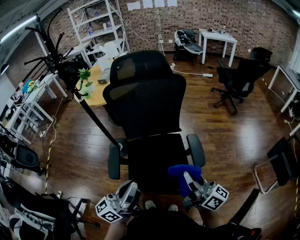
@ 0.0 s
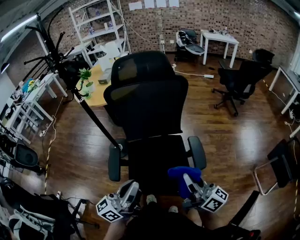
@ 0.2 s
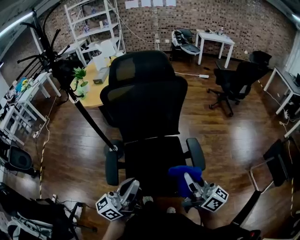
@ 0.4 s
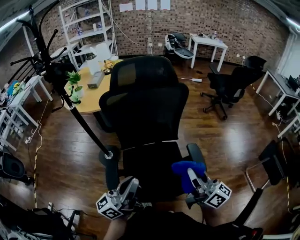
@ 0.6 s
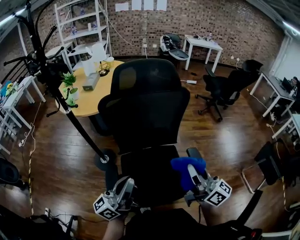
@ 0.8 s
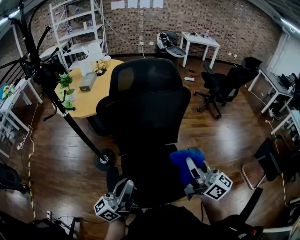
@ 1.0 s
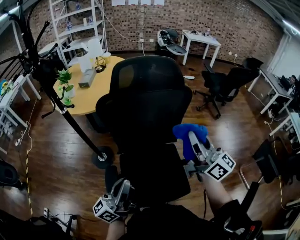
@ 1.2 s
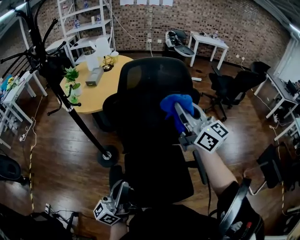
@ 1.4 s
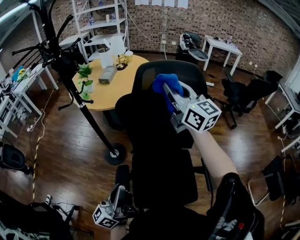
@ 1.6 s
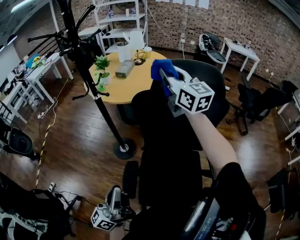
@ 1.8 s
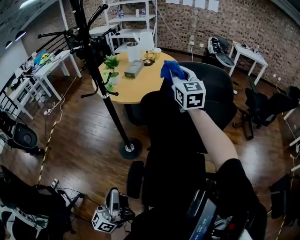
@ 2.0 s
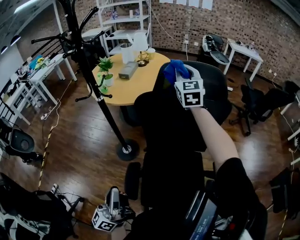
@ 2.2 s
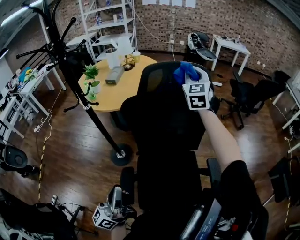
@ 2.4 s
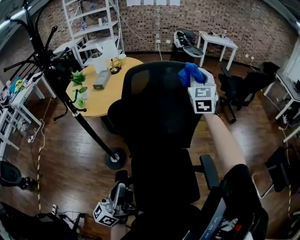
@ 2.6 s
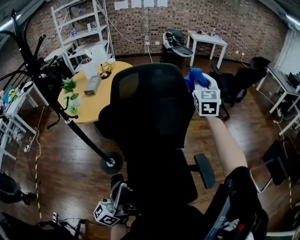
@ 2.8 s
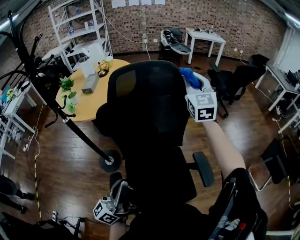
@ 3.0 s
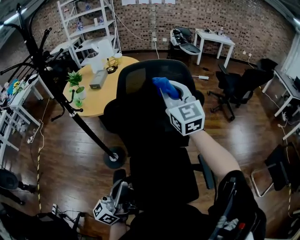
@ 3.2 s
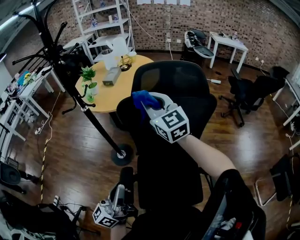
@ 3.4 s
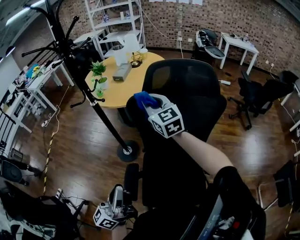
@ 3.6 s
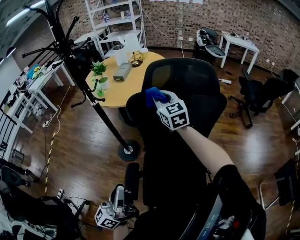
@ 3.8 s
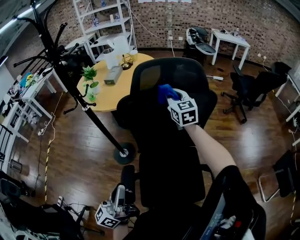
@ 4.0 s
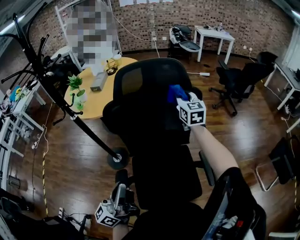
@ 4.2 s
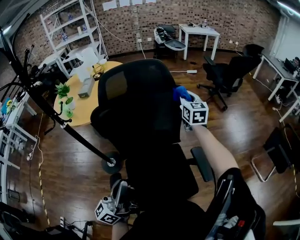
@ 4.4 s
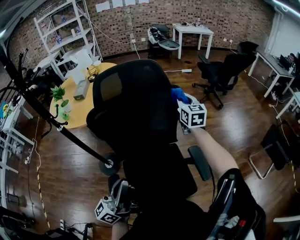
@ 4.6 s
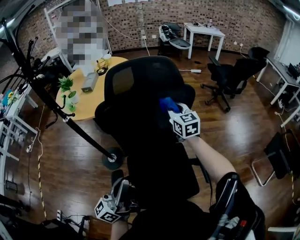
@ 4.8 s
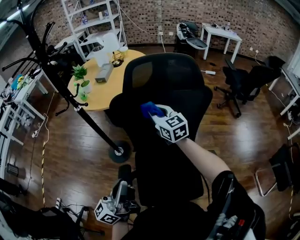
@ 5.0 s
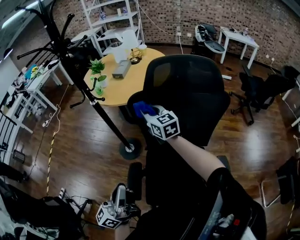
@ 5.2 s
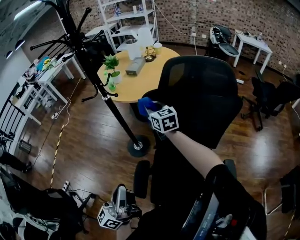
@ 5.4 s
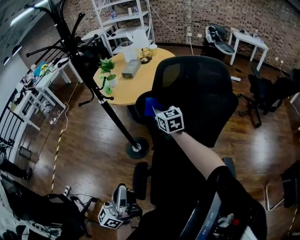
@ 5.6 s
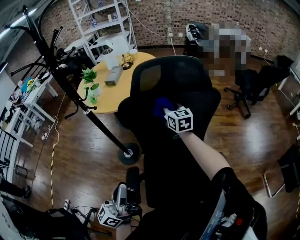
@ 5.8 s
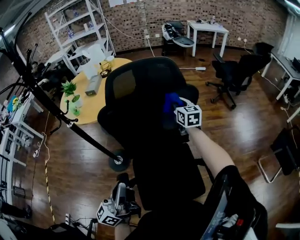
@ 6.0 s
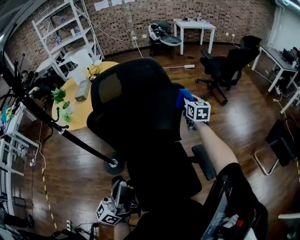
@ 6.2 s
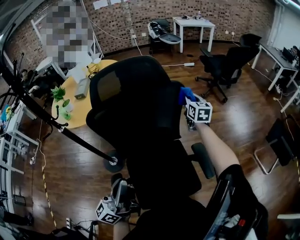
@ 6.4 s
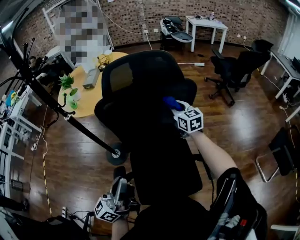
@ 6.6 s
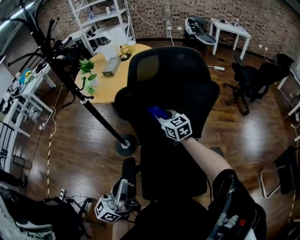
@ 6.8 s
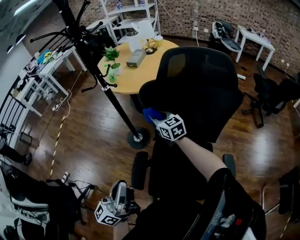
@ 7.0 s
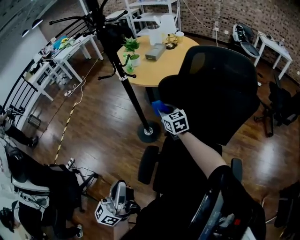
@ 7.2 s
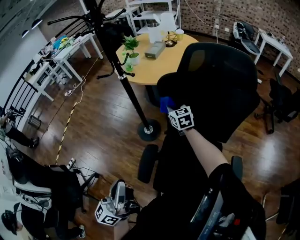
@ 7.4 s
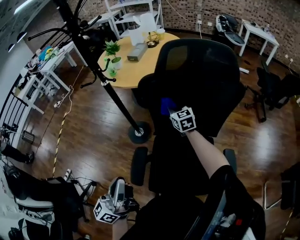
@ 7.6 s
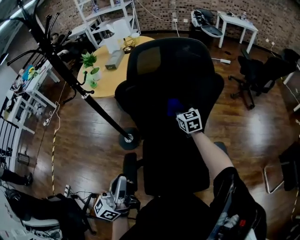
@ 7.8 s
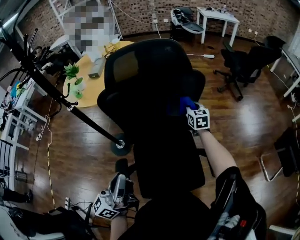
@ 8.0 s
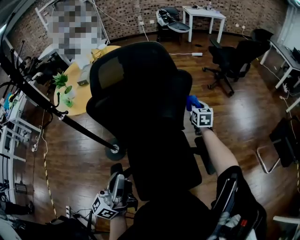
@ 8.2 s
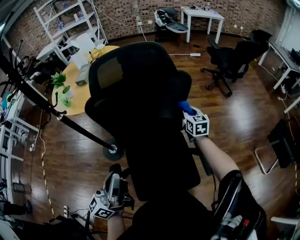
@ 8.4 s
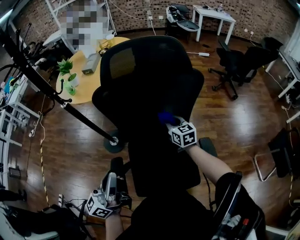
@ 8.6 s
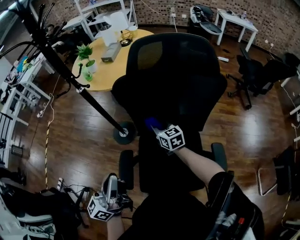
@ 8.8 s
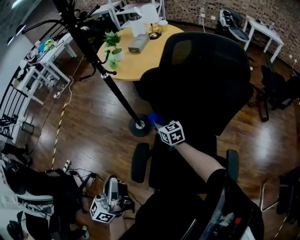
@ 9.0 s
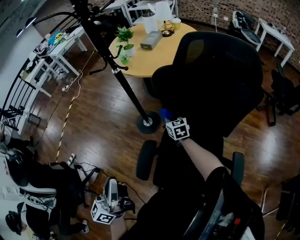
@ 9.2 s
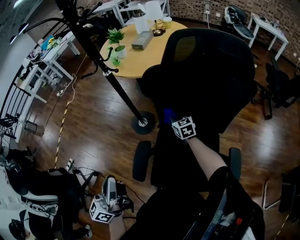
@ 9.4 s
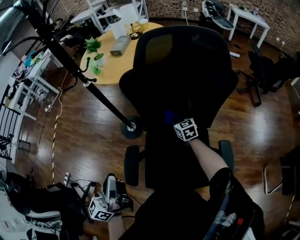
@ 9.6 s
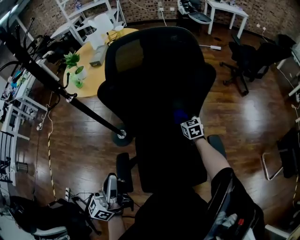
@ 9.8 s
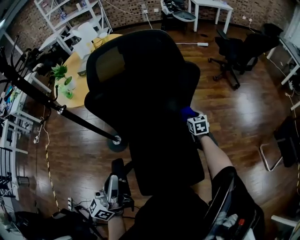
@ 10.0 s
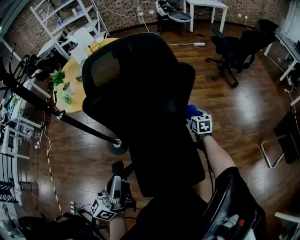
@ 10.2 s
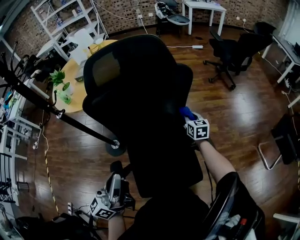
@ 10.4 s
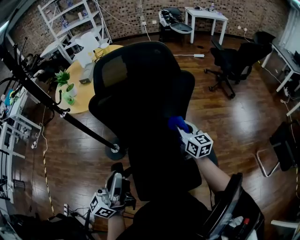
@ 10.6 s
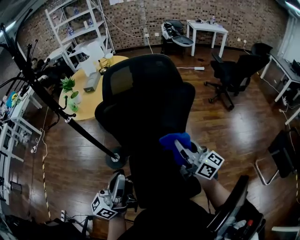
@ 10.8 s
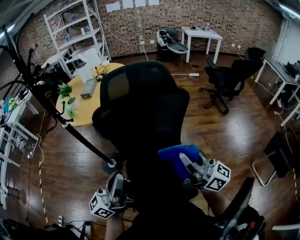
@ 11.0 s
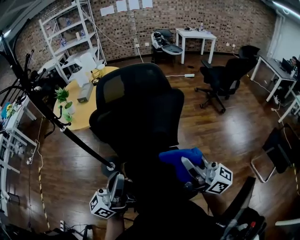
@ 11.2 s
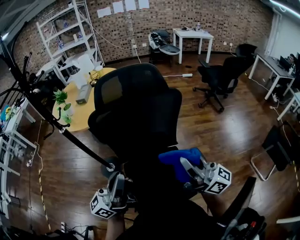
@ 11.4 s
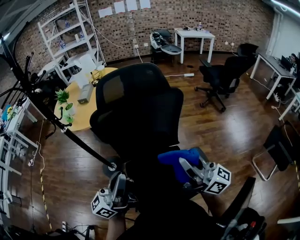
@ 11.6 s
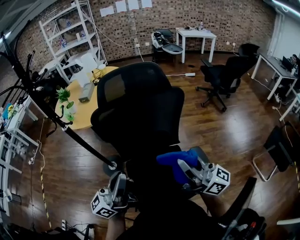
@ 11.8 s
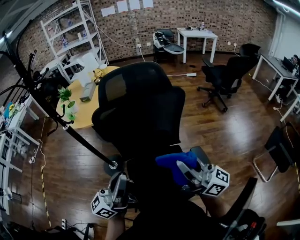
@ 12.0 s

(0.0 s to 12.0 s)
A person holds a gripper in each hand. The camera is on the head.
0.0 s - 1.6 s: The left gripper goes approximately 20 cm to the left and forward; the right gripper is displaced forward, to the left and upward by approximately 50 cm, and swivels some 40 degrees.
1.6 s - 3.0 s: The left gripper changes place by roughly 10 cm, while the right gripper ends up roughly 20 cm from where it was, and swivels roughly 50 degrees.
3.0 s - 4.4 s: The right gripper goes roughly 15 cm downward, and turns by roughly 20 degrees.
6.0 s - 7.6 s: The right gripper changes place by approximately 25 cm, and changes its angle by about 30 degrees. The left gripper changes place by approximately 10 cm, and swivels roughly 20 degrees.
9.0 s - 10.4 s: The left gripper moves roughly 15 cm, and rotates some 30 degrees, while the right gripper travels downward and back again, some 10 cm each way, and turns by about 40 degrees.
10.4 s - 12.0 s: The left gripper shifts about 5 cm upward; the right gripper goes some 40 cm upward and backward, and points its fingers approximately 60 degrees further upward.

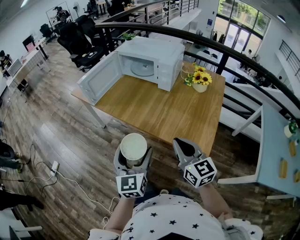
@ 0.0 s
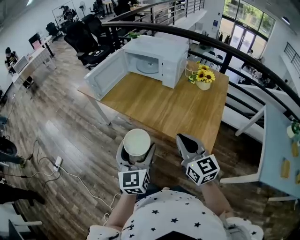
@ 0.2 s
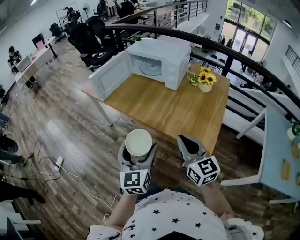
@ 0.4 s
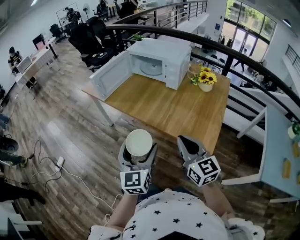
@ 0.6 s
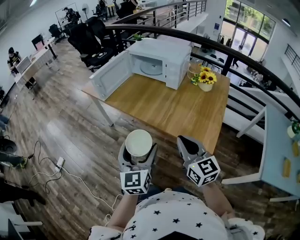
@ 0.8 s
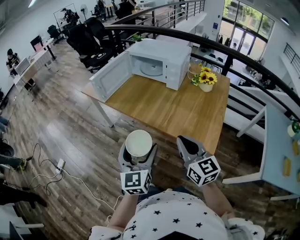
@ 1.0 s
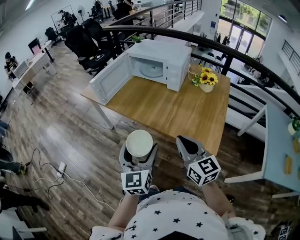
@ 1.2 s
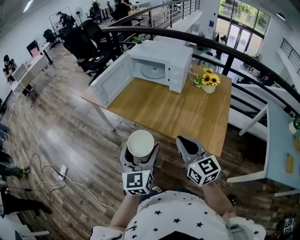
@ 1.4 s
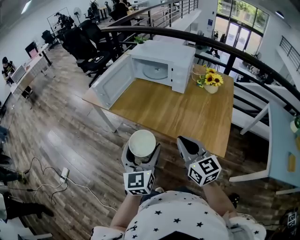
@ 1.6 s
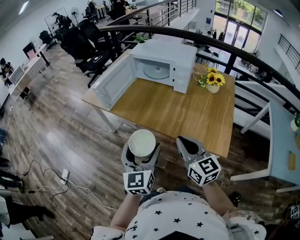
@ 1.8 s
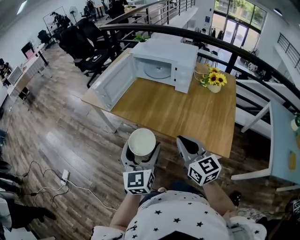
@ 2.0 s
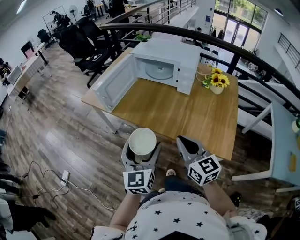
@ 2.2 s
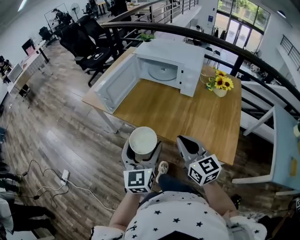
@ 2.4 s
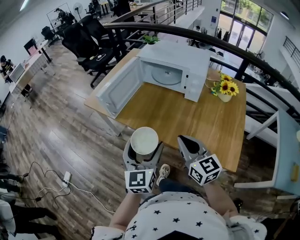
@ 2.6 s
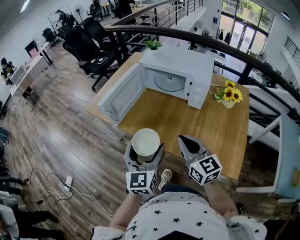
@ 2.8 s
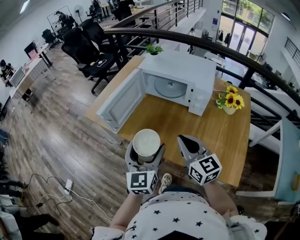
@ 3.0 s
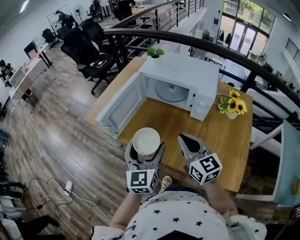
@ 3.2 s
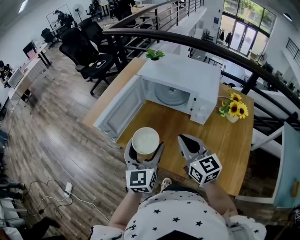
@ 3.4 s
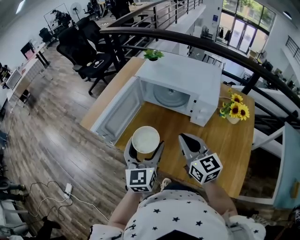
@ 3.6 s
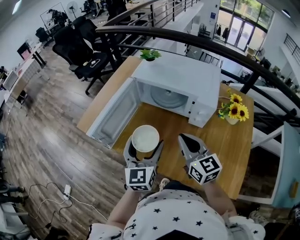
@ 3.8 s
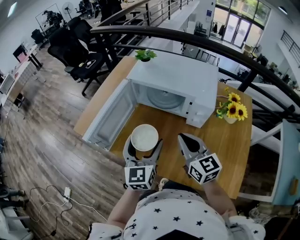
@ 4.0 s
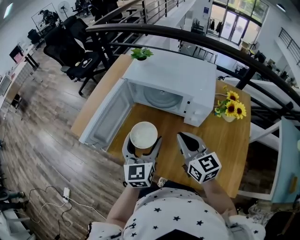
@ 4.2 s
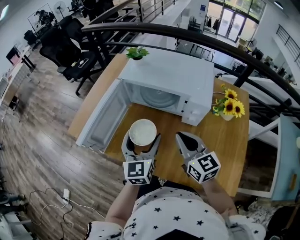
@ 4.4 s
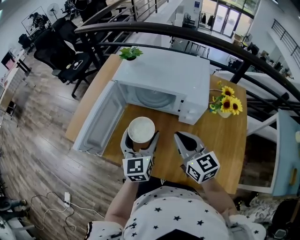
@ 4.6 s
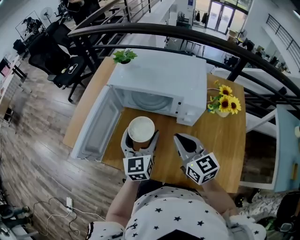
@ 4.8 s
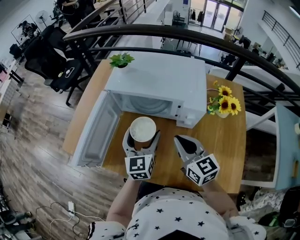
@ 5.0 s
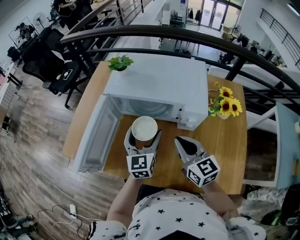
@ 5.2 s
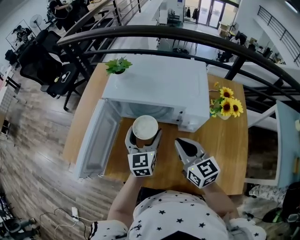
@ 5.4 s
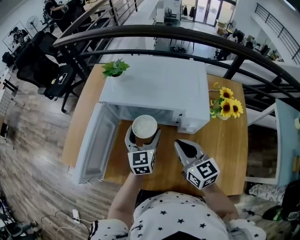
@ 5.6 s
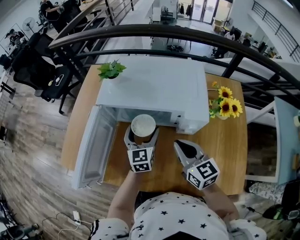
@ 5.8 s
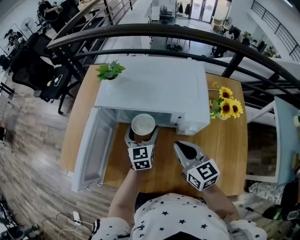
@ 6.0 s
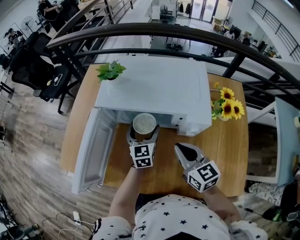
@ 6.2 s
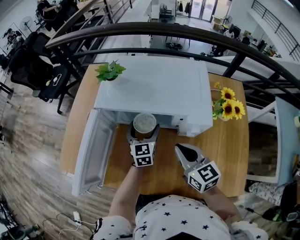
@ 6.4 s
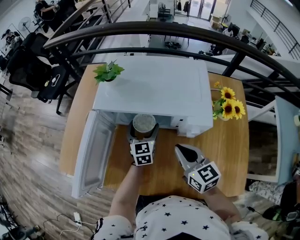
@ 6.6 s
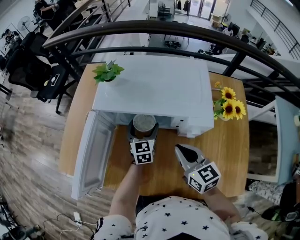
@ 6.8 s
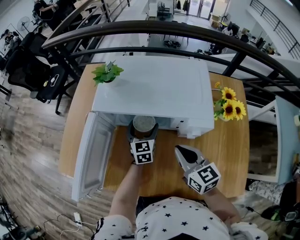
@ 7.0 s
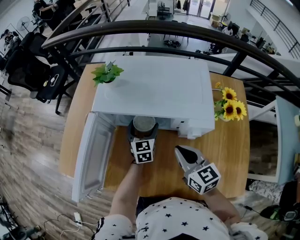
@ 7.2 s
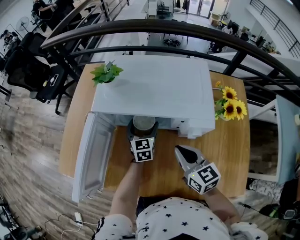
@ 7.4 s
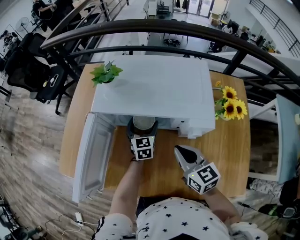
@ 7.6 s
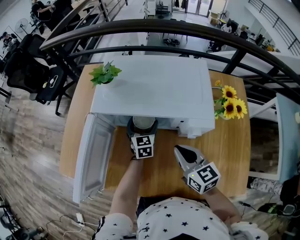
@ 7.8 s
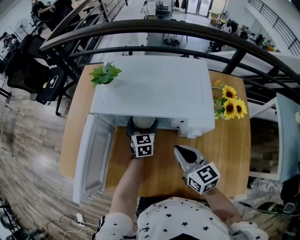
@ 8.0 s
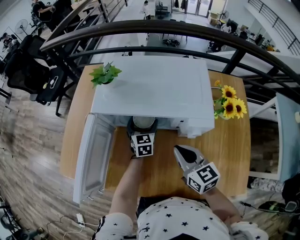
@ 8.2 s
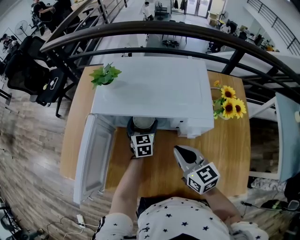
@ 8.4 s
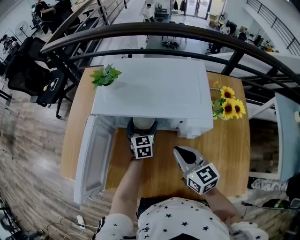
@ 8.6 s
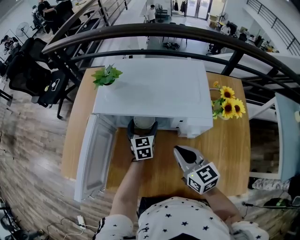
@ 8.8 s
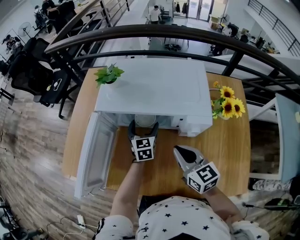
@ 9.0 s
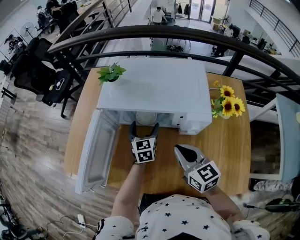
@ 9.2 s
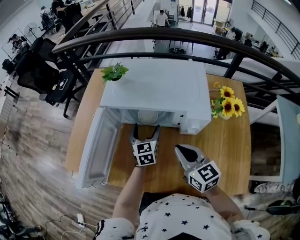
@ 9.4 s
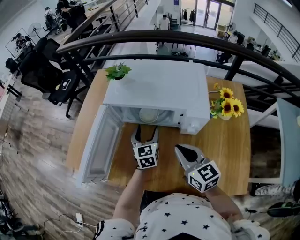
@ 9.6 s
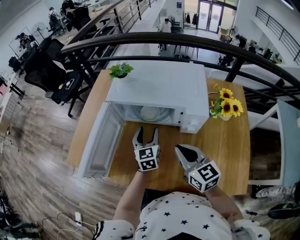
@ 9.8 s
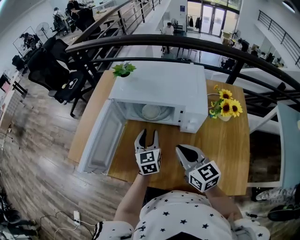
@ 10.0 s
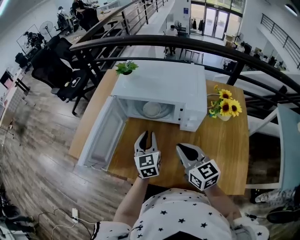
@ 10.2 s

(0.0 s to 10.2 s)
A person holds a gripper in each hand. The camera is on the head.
0.0 s - 1.4 s: The right gripper moves to the left, about 5 cm.
1.4 s - 3.0 s: The grippers both shift forward by approximately 25 cm.
3.0 s - 4.4 s: The right gripper moves forward and to the right, some 15 cm. The left gripper heads forward, covering some 20 cm.
4.4 s - 5.8 s: The right gripper heads forward, covering roughly 5 cm. The left gripper is displaced forward and downward by about 20 cm.
5.8 s - 7.2 s: The left gripper goes about 10 cm downward and forward.
7.2 s - 8.8 s: The grippers stay close to where they were, moving slightly.
8.8 s - 10.2 s: The right gripper travels backward by approximately 10 cm. Meanwhile the left gripper shifts roughly 20 cm backward and upward, and closes up.

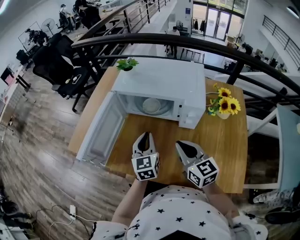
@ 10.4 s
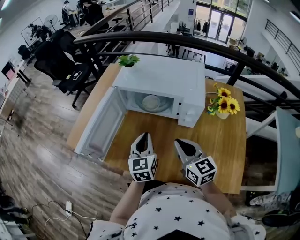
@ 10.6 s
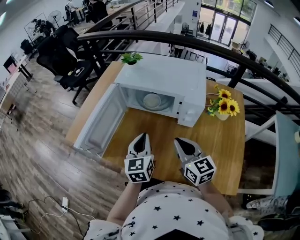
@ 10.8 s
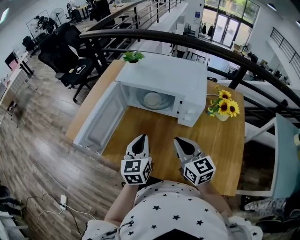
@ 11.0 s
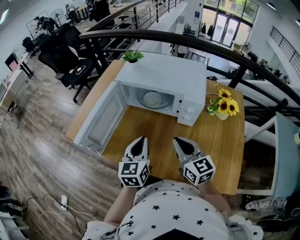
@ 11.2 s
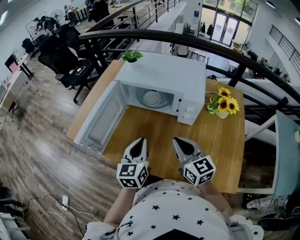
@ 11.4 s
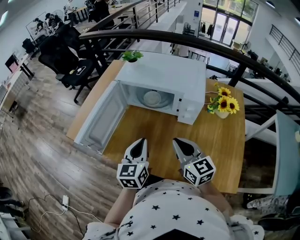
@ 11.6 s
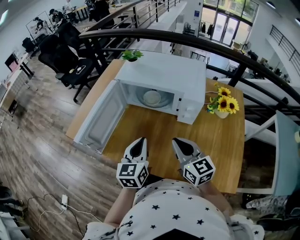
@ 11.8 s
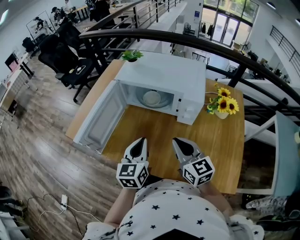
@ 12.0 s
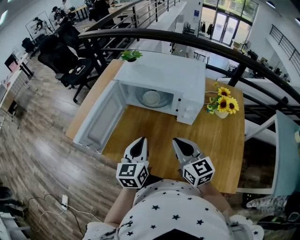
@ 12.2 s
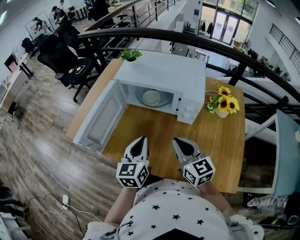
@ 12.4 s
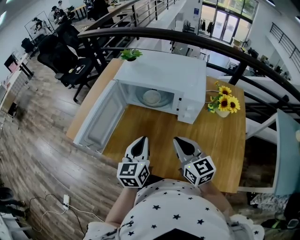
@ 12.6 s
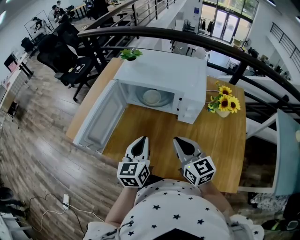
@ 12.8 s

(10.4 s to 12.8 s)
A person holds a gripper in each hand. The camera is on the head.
10.4 s - 11.6 s: The left gripper shifts some 10 cm backward.
11.6 s - 12.8 s: The grippers stay close to where they were, moving slightly.
